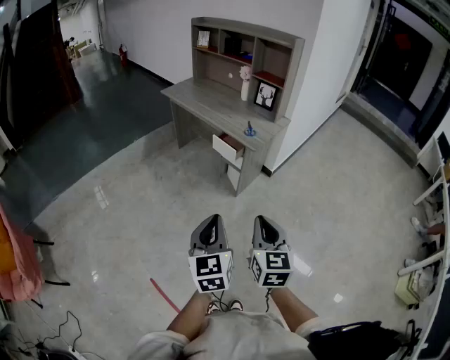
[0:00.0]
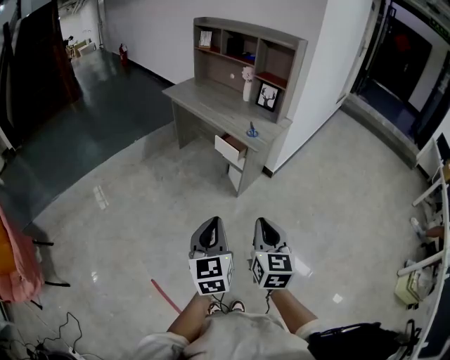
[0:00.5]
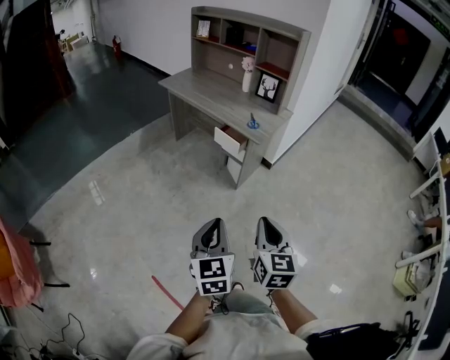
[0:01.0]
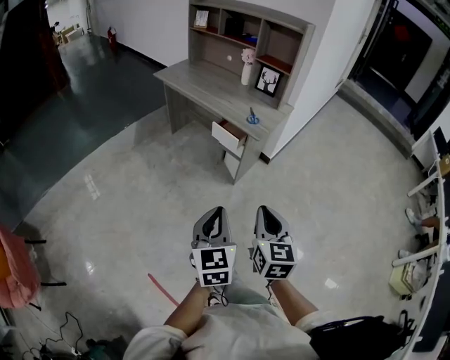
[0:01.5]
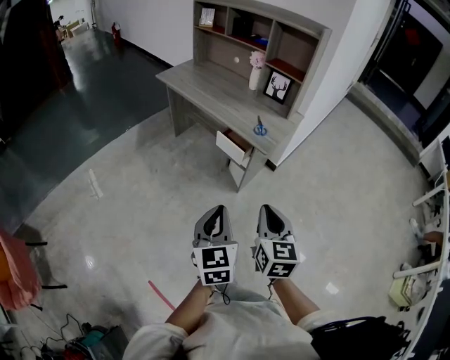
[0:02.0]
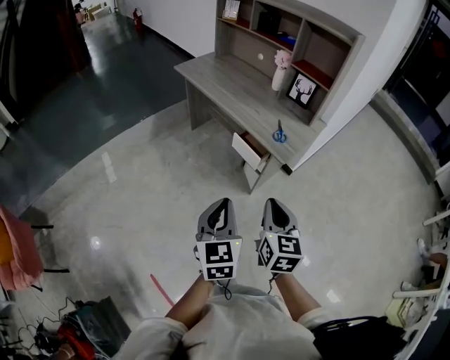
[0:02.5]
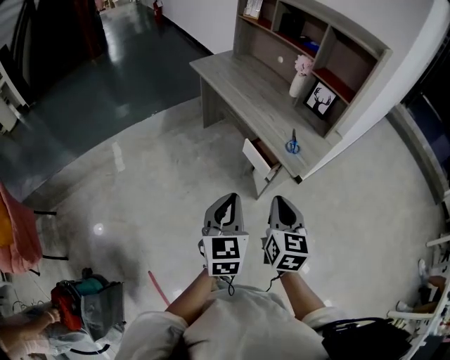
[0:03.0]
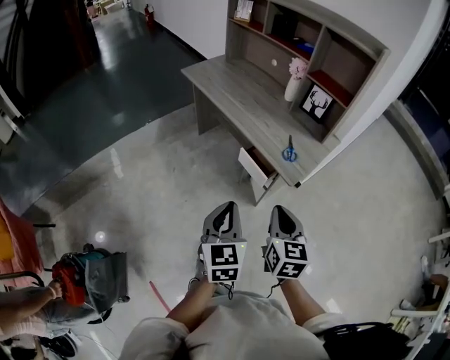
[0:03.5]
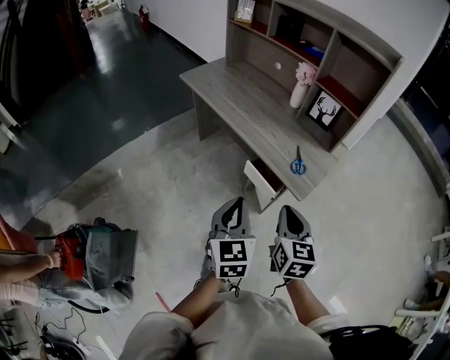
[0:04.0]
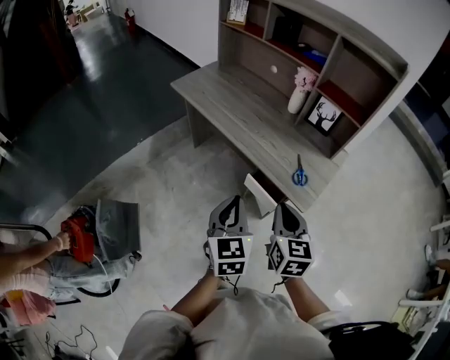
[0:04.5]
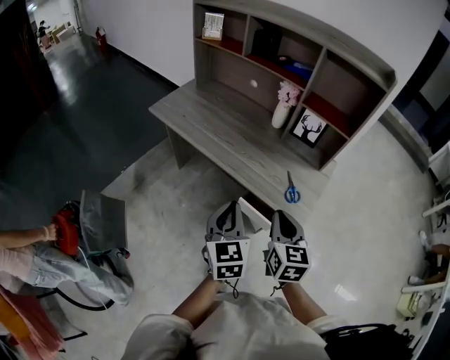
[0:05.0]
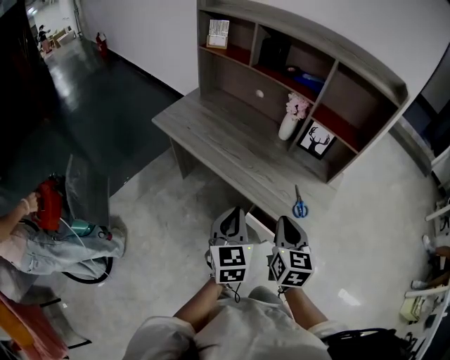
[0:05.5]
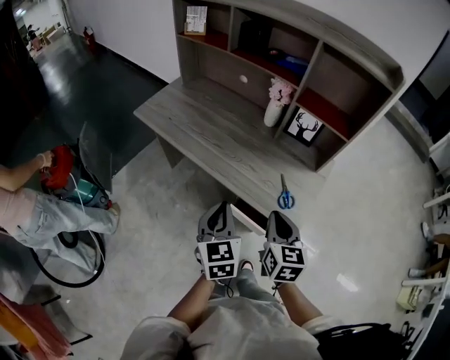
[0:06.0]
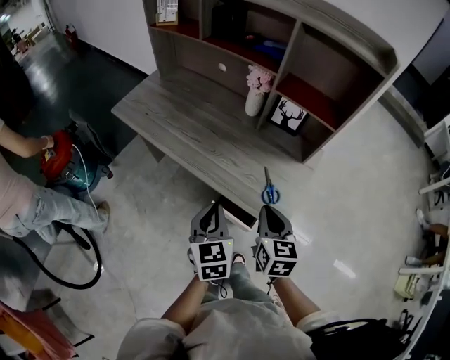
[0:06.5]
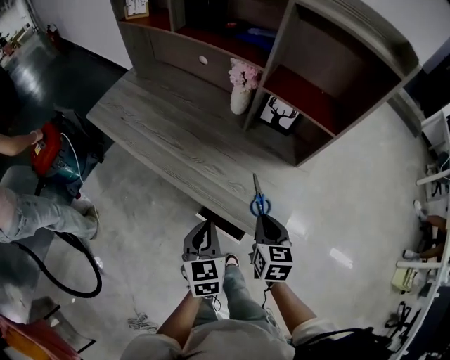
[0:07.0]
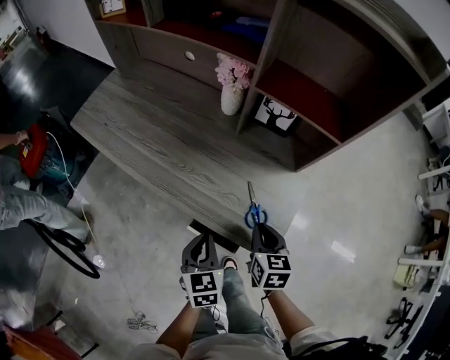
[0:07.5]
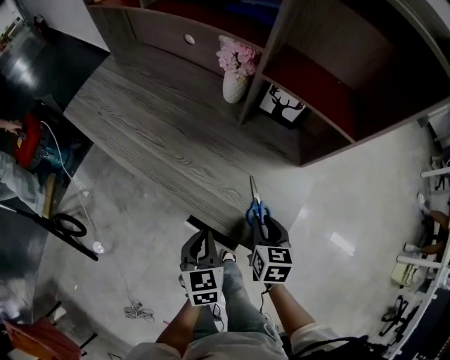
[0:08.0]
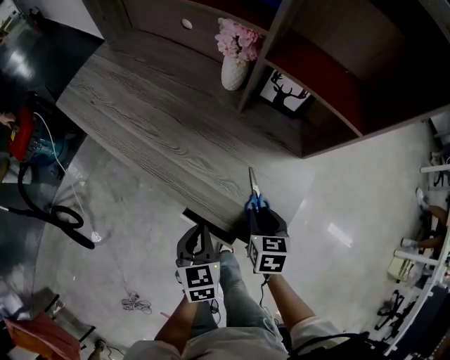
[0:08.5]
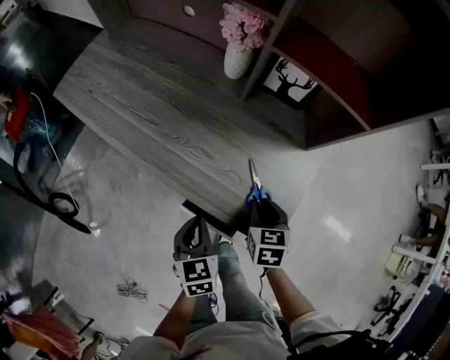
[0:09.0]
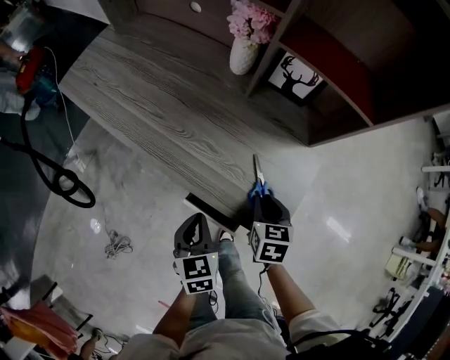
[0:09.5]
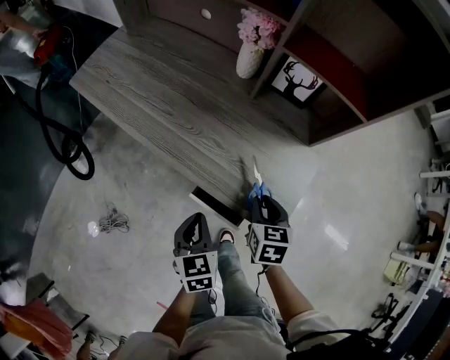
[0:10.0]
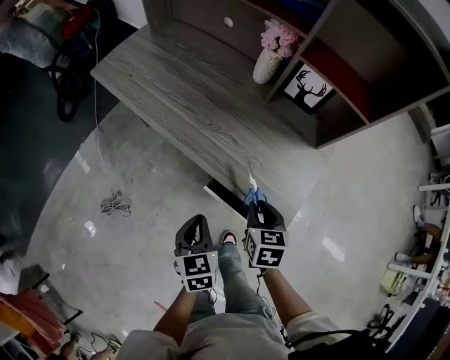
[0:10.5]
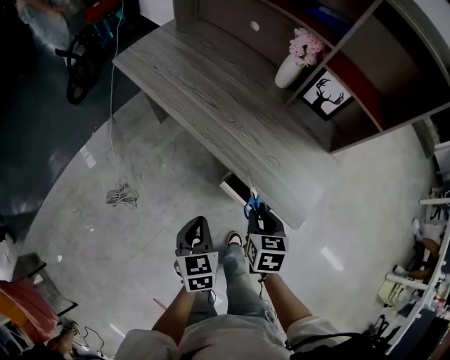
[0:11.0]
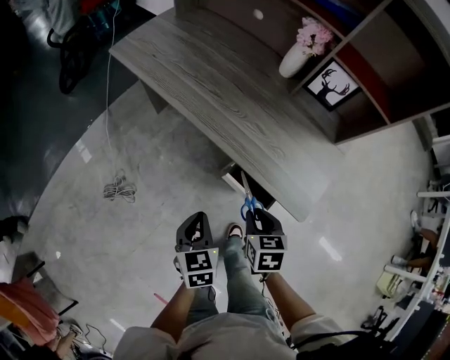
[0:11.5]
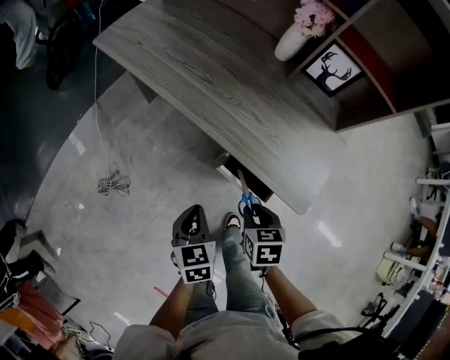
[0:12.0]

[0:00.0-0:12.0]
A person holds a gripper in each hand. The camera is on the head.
0:00.0 to 0:02.0: Both grippers travel together forward, about 15 cm.
0:02.0 to 0:04.0: Both grippers travel together forward, roughly 25 cm.
0:04.0 to 0:06.0: Both grippers move forward, approximately 20 cm.
0:06.0 to 0:08.0: The right gripper shifts roughly 25 cm downward, to the right and forward, and changes its angle by roughly 20 degrees, while the left gripper moves downward and to the right, approximately 20 cm.
0:08.0 to 0:10.0: The left gripper changes place by approximately 5 cm.
0:10.0 to 0:12.0: Both grippers move to the left and backward, roughly 15 cm.

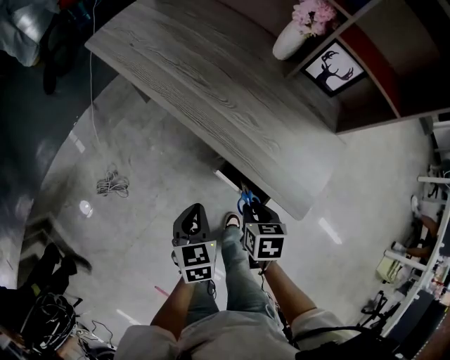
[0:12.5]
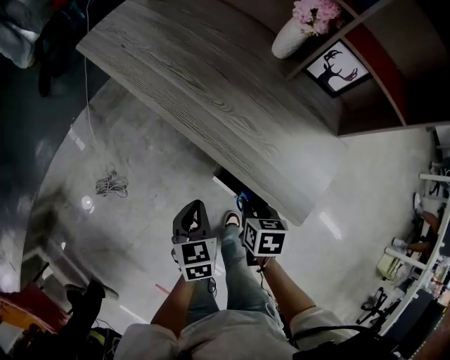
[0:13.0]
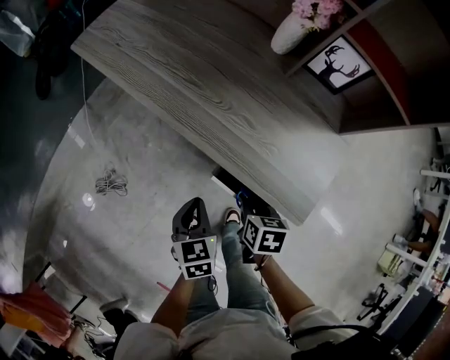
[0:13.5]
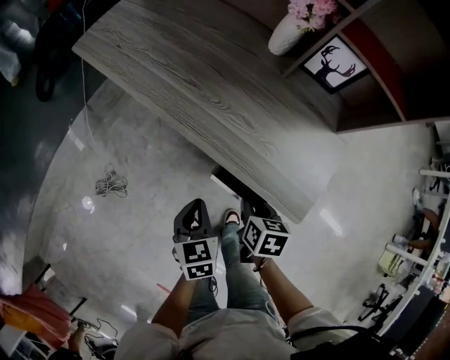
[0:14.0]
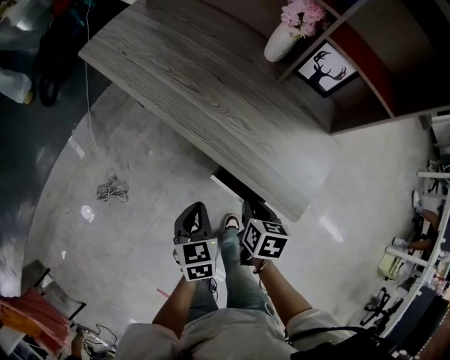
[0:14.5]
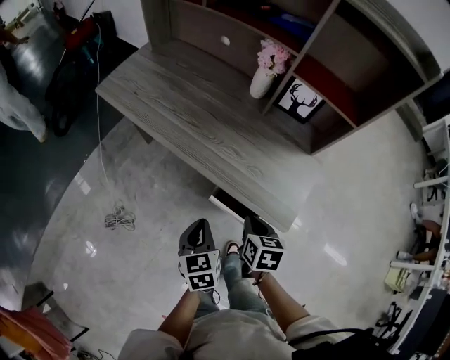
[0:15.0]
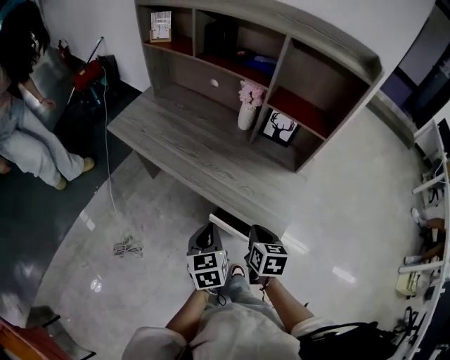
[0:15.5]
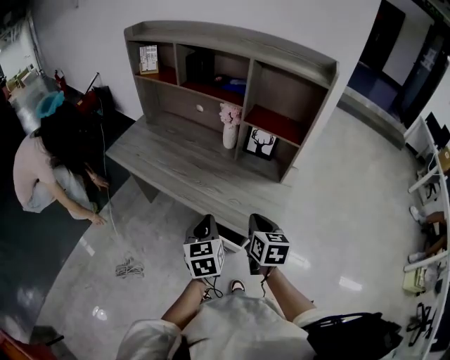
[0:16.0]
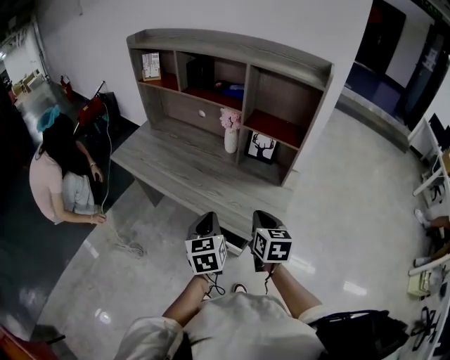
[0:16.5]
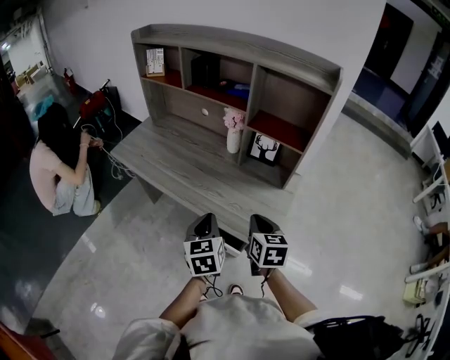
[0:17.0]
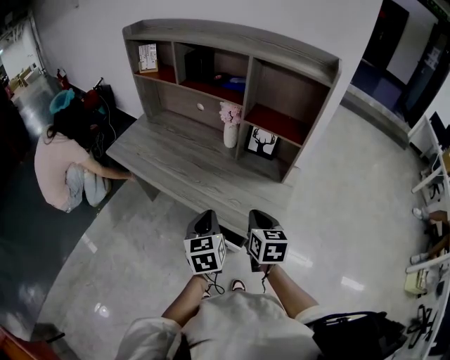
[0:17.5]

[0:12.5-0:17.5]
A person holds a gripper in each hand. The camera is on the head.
0:12.5 to 0:15.0: The two grippers go approximately 10 cm upward.
0:15.0 to 0:17.5: The right gripper moves upward, some 15 cm. The left gripper is displaced upward and to the right by roughly 15 cm.

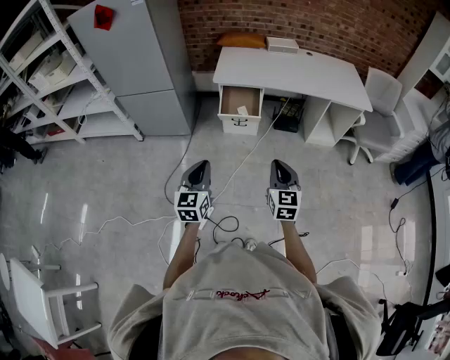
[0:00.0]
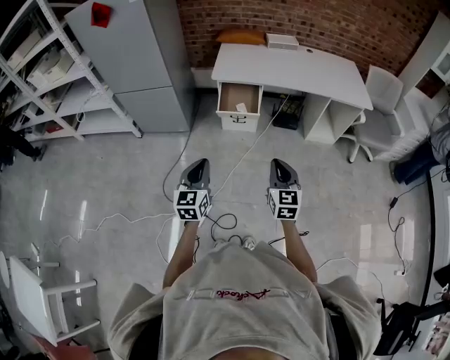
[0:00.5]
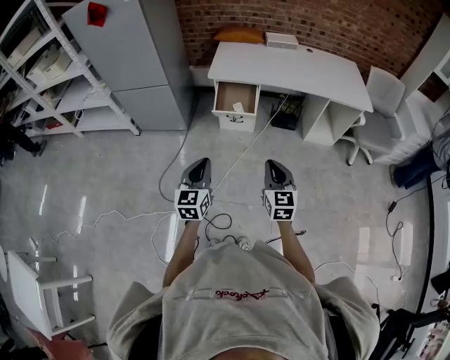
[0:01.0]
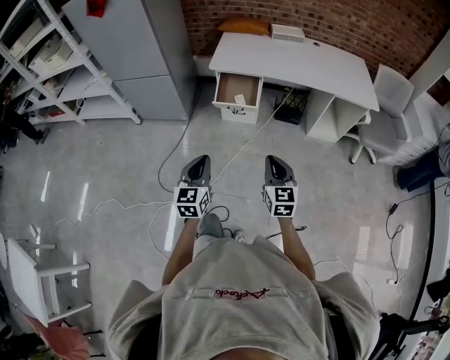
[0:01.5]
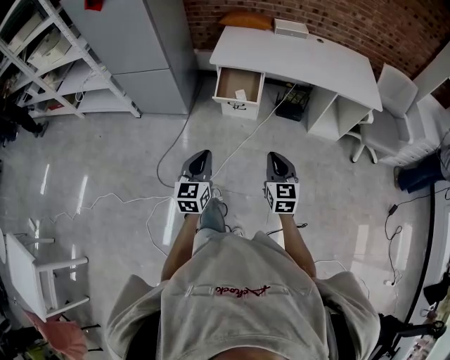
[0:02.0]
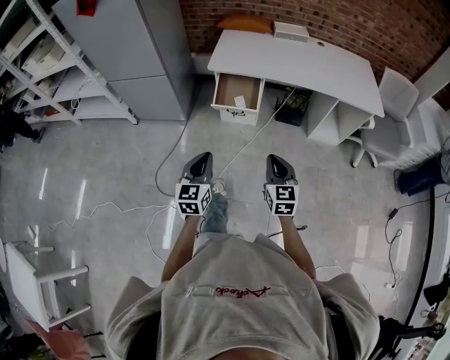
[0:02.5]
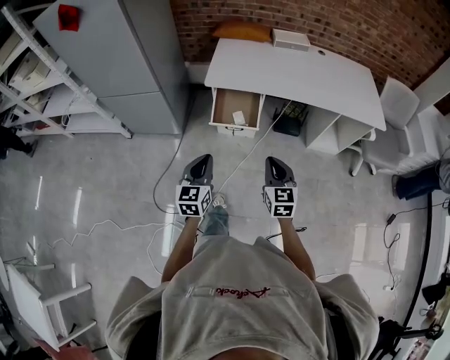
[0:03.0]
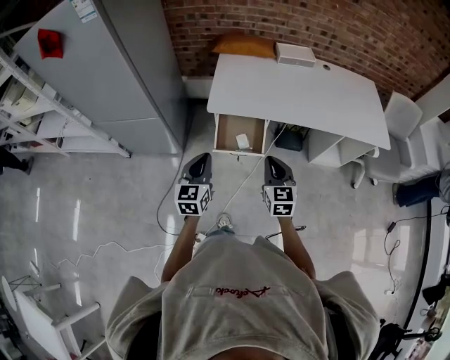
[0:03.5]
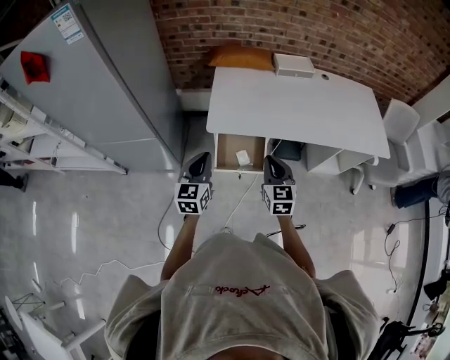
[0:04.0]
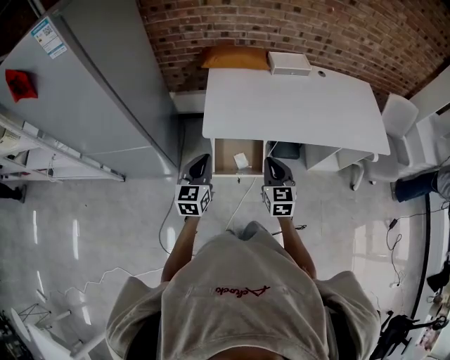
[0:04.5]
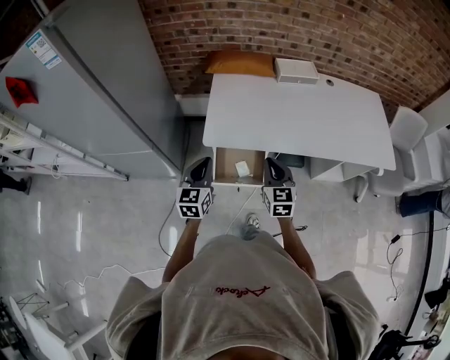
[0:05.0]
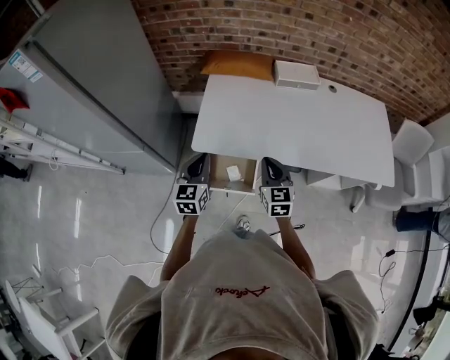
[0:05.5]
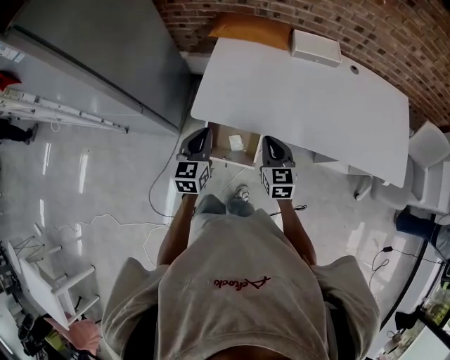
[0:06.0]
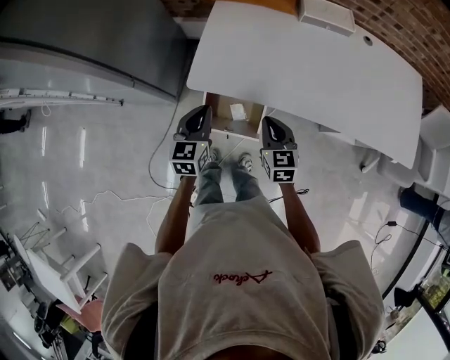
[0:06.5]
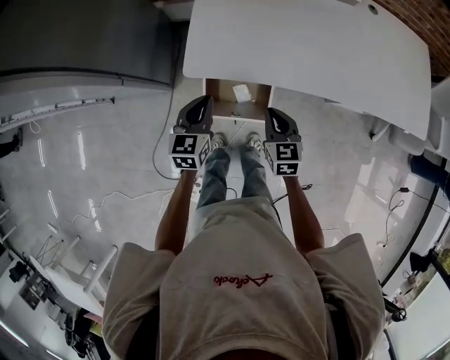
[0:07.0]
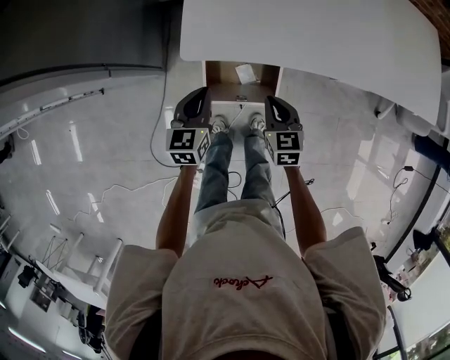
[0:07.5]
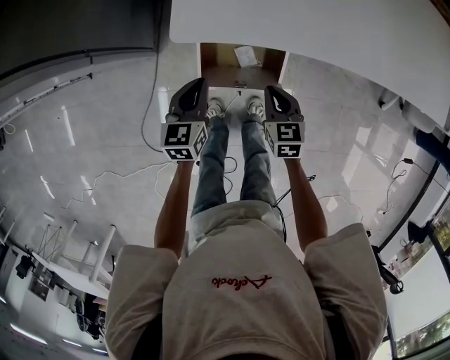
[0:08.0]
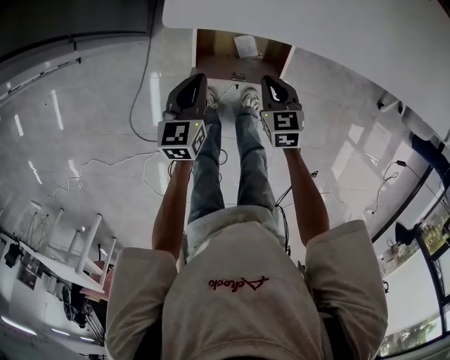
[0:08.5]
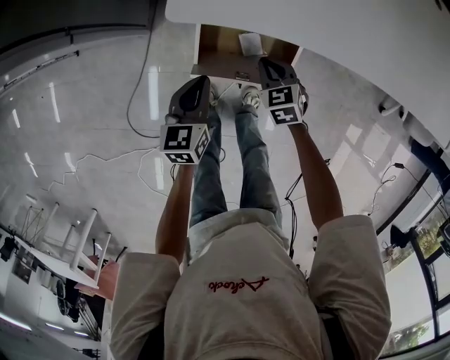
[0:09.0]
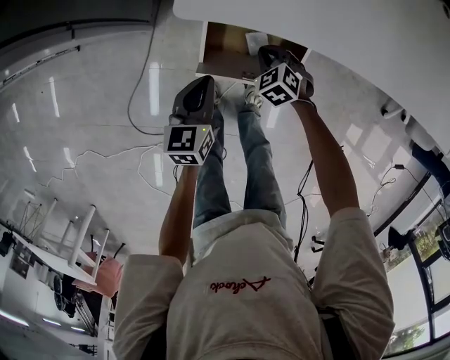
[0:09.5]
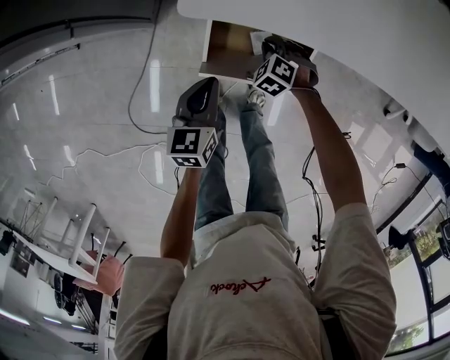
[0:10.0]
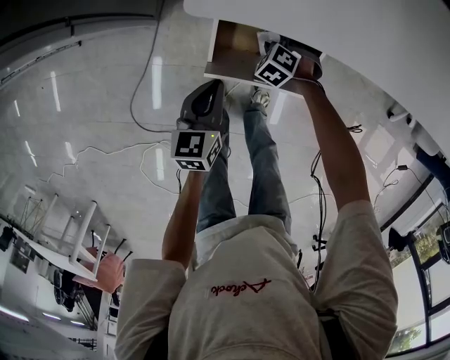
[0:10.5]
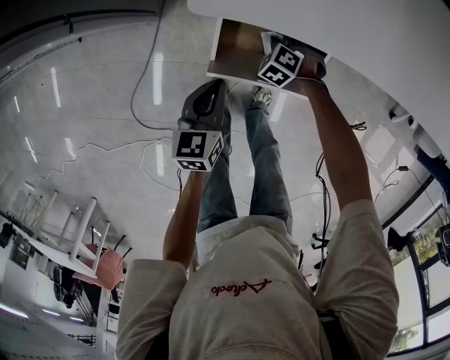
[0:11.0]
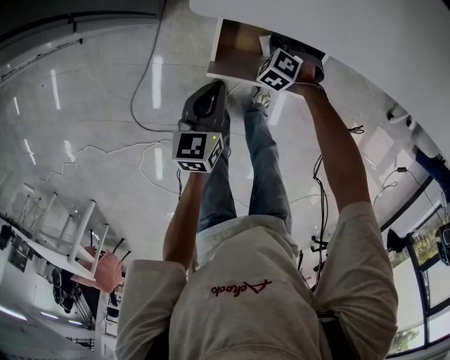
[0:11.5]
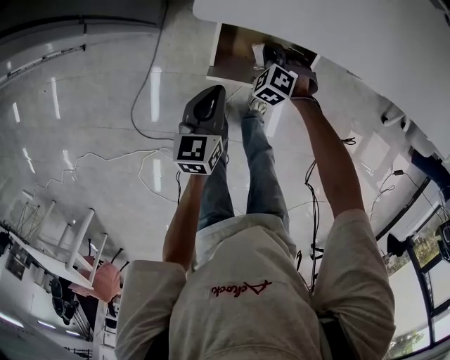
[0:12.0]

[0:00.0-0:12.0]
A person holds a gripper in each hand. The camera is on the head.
0:00.0 to 0:02.0: The left gripper heads to the right, covering roughly 10 cm; the right gripper shifts approximately 10 cm to the right and forward.
0:02.0 to 0:04.0: The two grippers travel together, forward, approximately 50 cm.
0:04.0 to 0:06.0: The right gripper shifts about 20 cm forward, to the right and downward. Meanwhile the left gripper travels forward and to the right by about 15 cm.
0:06.0 to 0:08.0: Both grippers travel together downward, roughly 25 cm. The right gripper swivels some 20 degrees.
0:08.0 to 0:10.0: The left gripper heads downward, covering roughly 5 cm. The right gripper is displaced downward and forward by approximately 20 cm, and rotates around the line of its fingers by roughly 60 degrees, counterclockwise from behind.
0:10.0 to 0:12.0: The right gripper opens and closes again.
